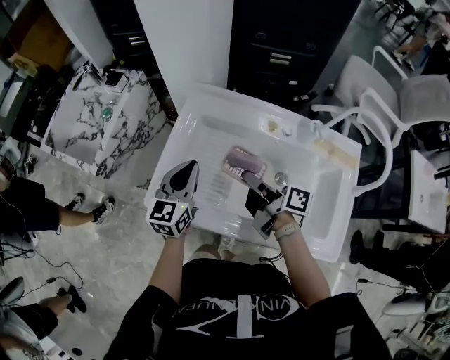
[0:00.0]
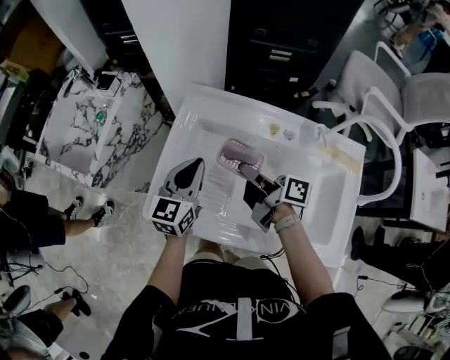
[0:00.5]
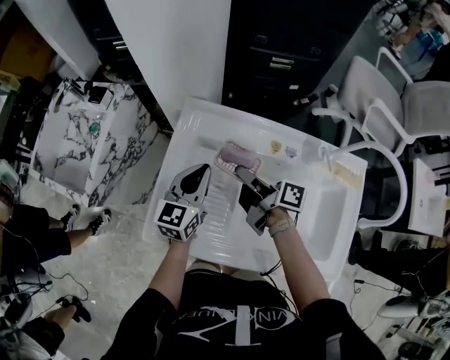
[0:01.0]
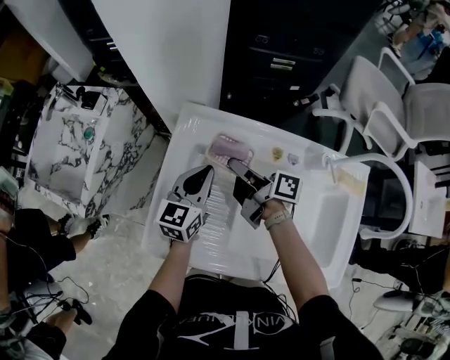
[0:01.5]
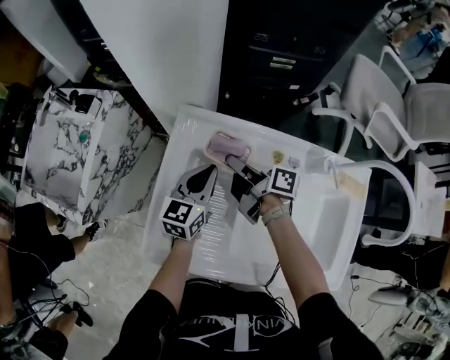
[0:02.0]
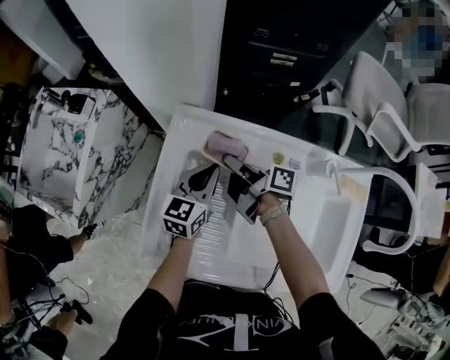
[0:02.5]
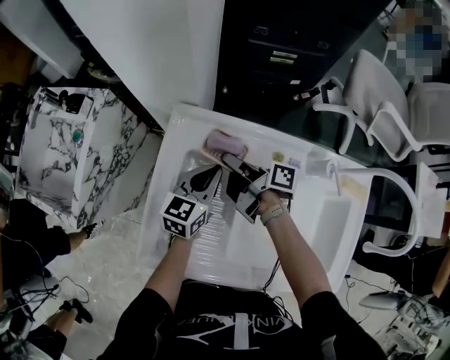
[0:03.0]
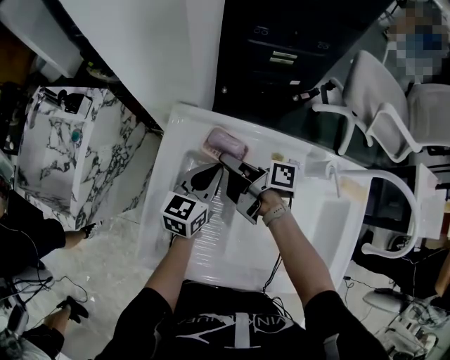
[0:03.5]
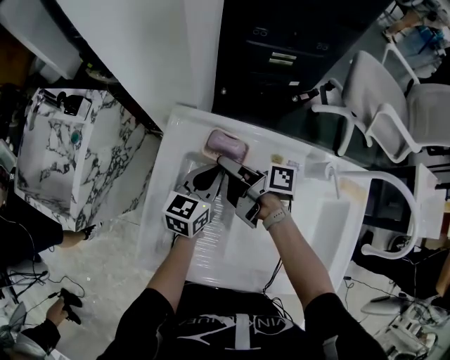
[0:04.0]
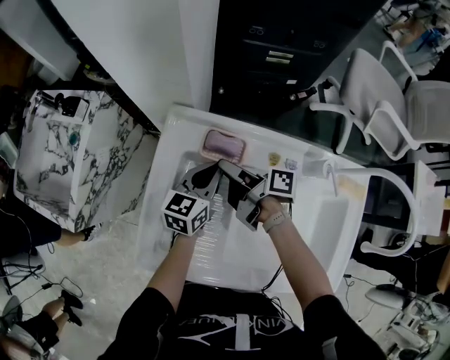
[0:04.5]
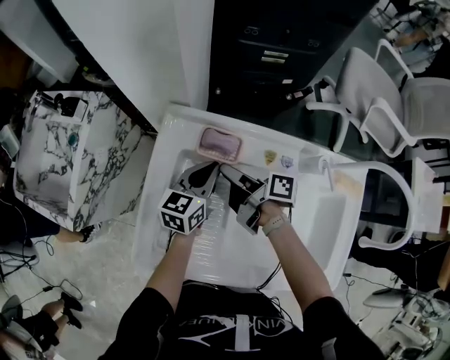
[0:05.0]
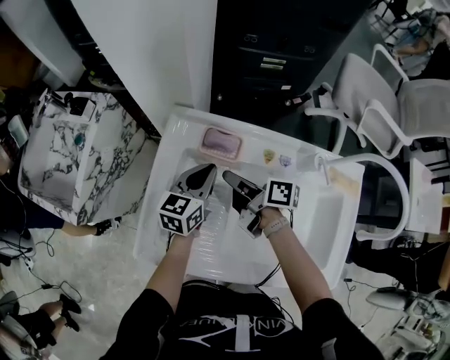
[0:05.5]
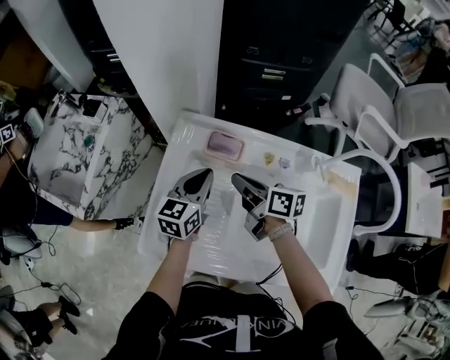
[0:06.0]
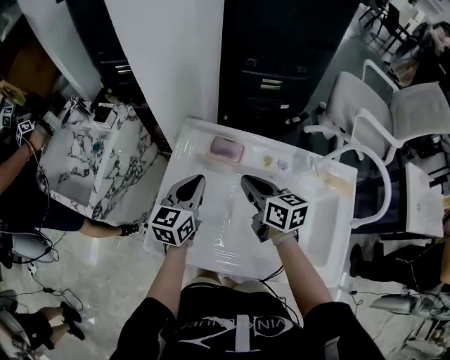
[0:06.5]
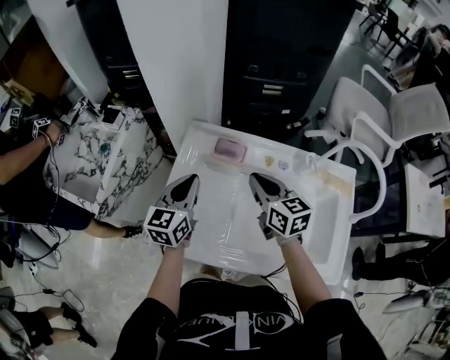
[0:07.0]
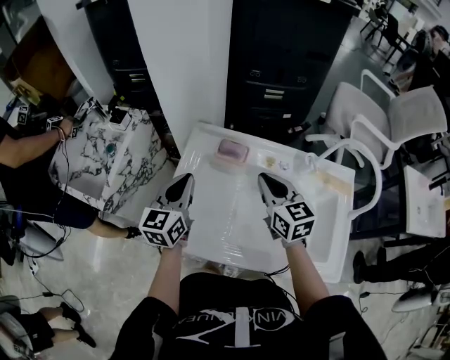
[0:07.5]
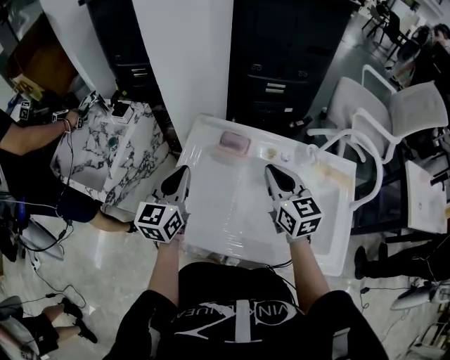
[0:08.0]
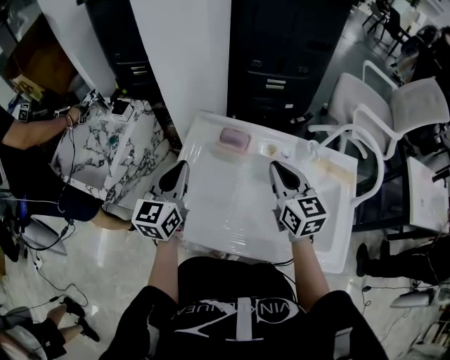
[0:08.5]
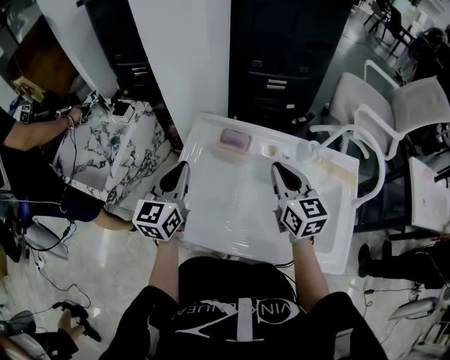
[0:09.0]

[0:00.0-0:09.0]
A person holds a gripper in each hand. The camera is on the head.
0:00.0 to 0:02.0: The right gripper travels forward by approximately 20 cm, while the left gripper goes some 15 cm forward, to the right and downward.
0:02.0 to 0:04.5: The right gripper opens up.
0:04.5 to 0:07.0: The right gripper travels upward and backward by some 15 cm, twists some 70 degrees counterclockwise, seen from behind, and closes up; the left gripper heads upward, to the left and backward, covering some 20 cm.
0:07.0 to 0:09.0: The two grippers go about 5 cm upward.

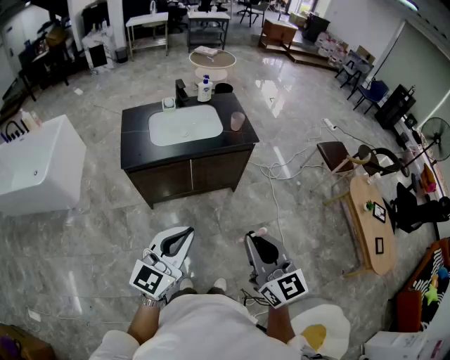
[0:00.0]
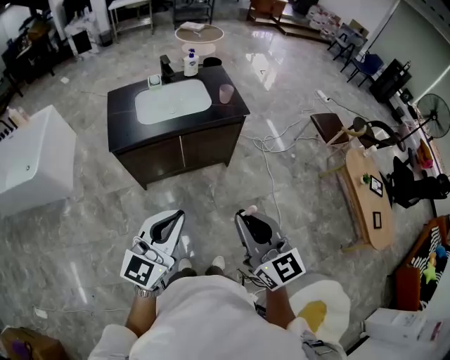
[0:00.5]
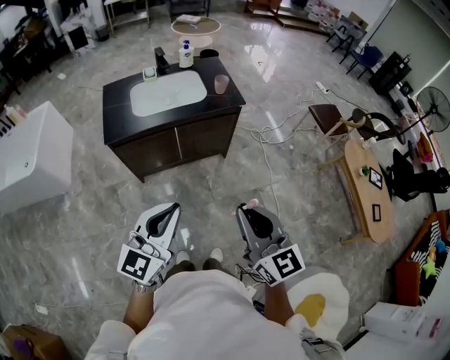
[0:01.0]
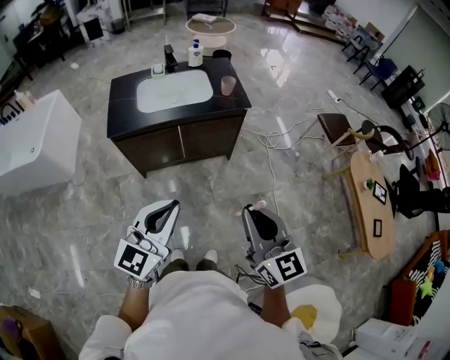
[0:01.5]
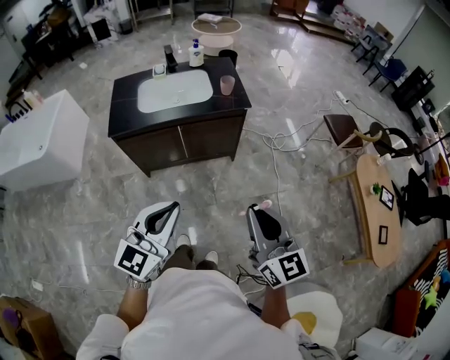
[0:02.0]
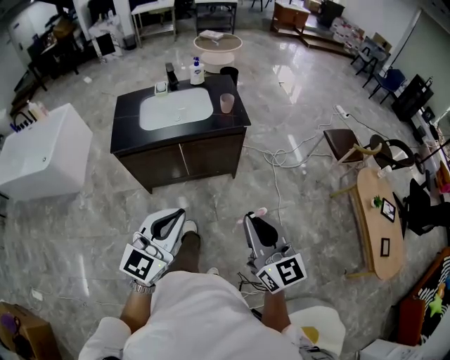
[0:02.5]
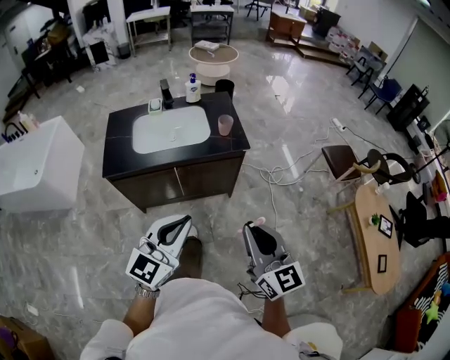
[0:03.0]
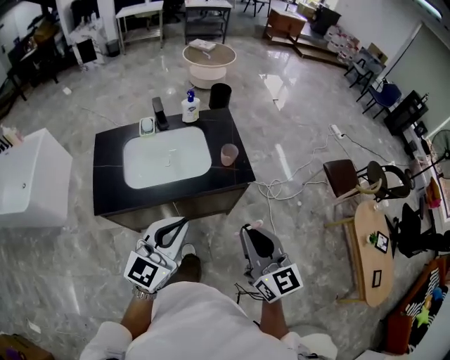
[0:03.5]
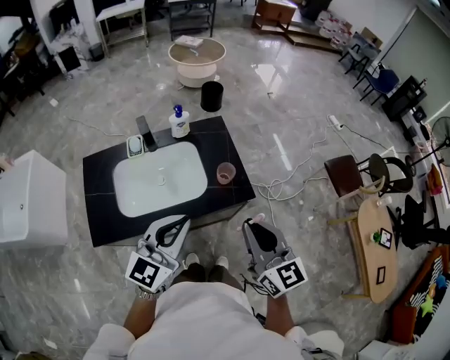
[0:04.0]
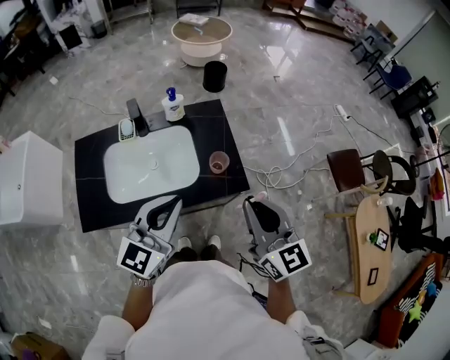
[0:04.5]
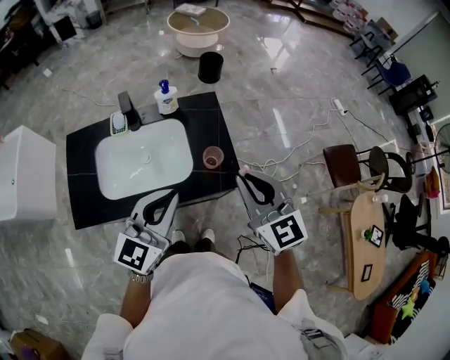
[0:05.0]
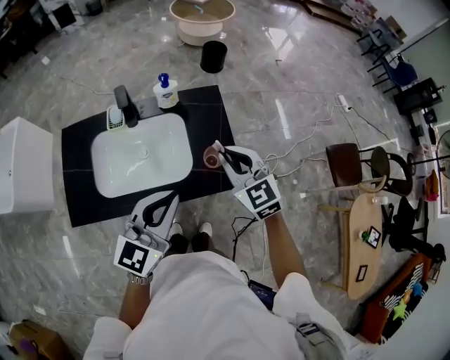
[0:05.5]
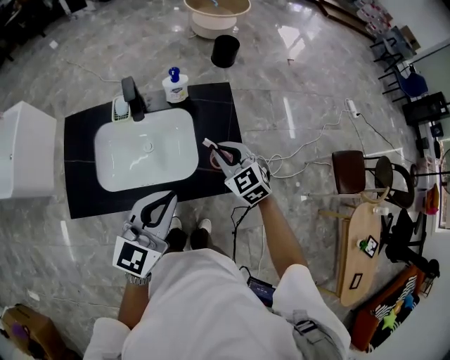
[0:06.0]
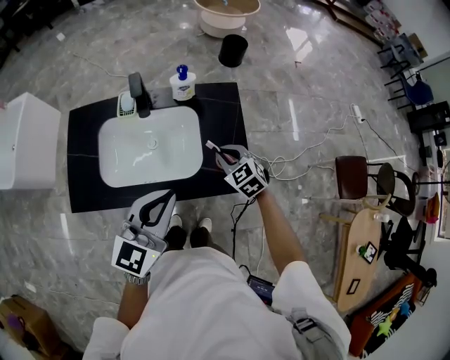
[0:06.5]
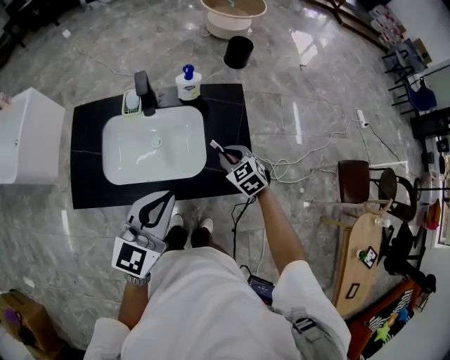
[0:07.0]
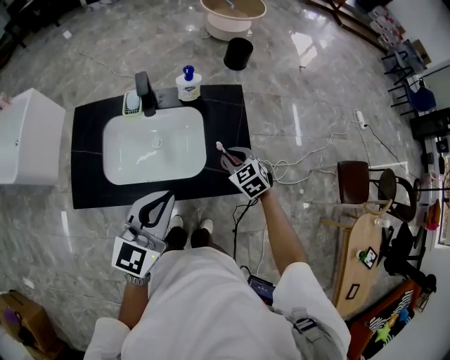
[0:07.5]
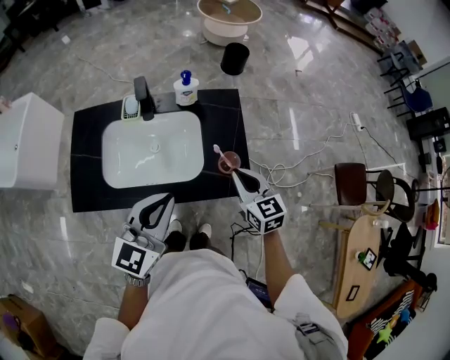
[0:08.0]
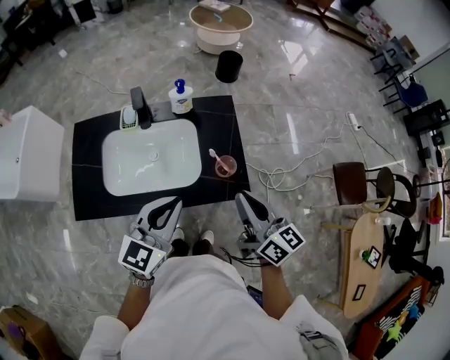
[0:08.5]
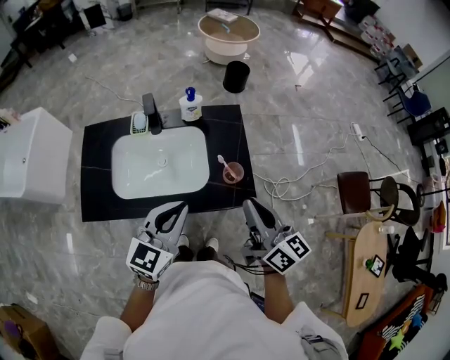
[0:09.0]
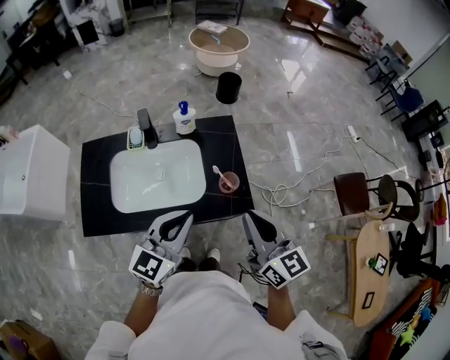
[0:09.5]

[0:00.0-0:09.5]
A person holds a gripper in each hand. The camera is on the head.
0:00.0 to 0:02.0: Both grippers travel together to the right, roughly 10 cm.
0:02.0 to 0:04.0: The two grippers travel together, forward, roughly 50 cm.
0:04.0 to 0:05.5: The left gripper is displaced forward by roughly 10 cm; the right gripper travels forward and downward by roughly 25 cm, and turns by approximately 30 degrees.
0:05.5 to 0:07.5: The right gripper is displaced downward by some 20 cm, and turns by roughly 20 degrees.
0:07.5 to 0:09.5: The right gripper heads upward and backward, covering approximately 30 cm, and angles its fingers upward, by approximately 40 degrees.

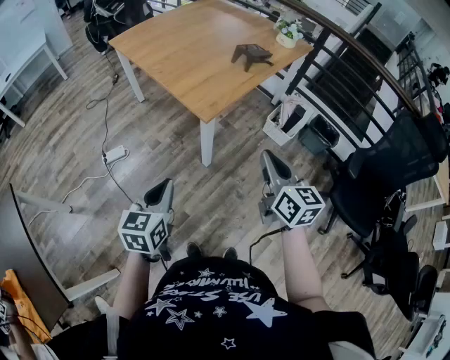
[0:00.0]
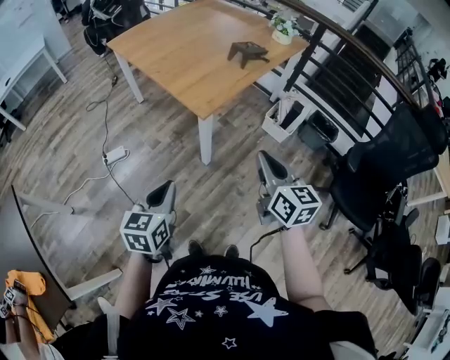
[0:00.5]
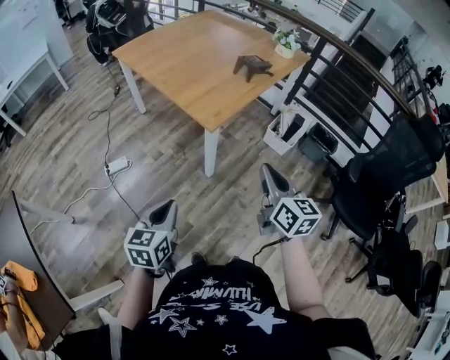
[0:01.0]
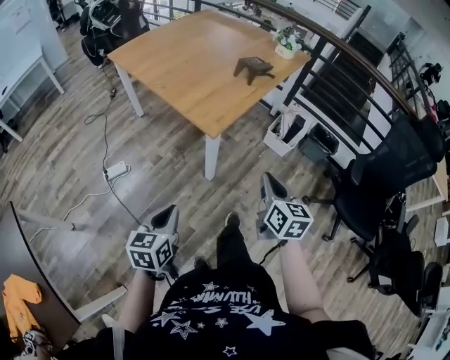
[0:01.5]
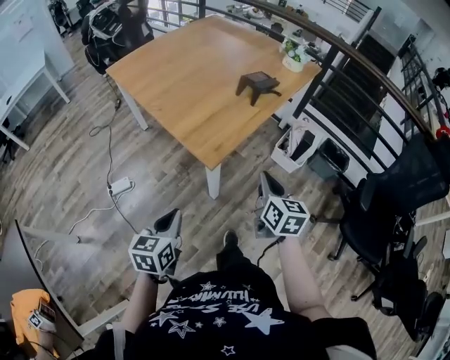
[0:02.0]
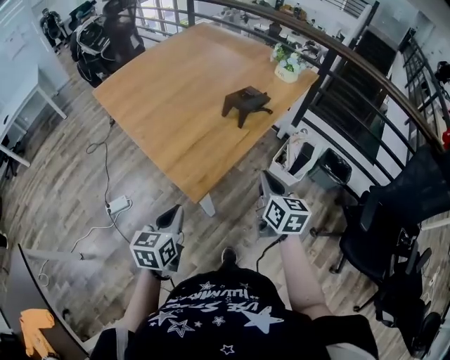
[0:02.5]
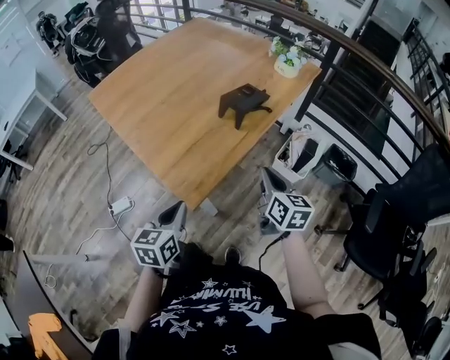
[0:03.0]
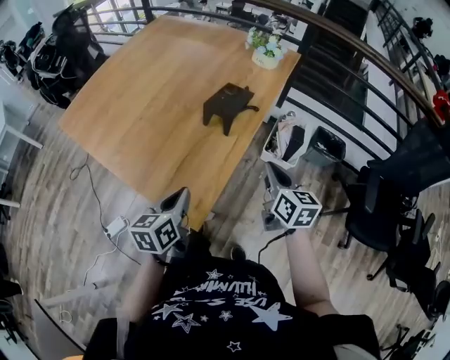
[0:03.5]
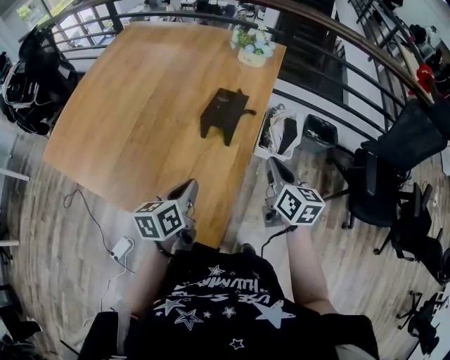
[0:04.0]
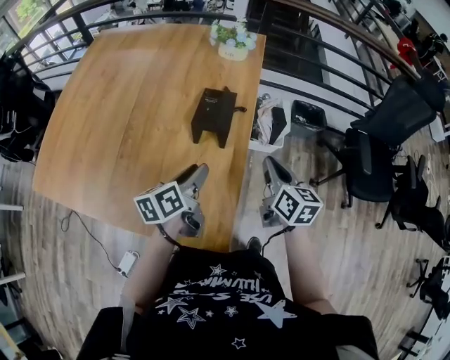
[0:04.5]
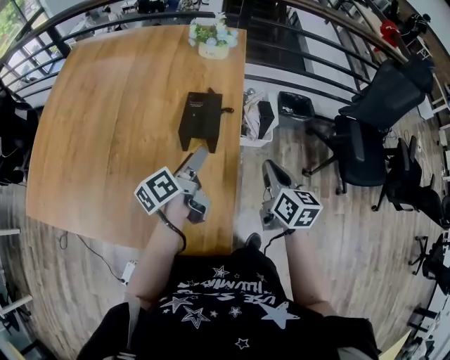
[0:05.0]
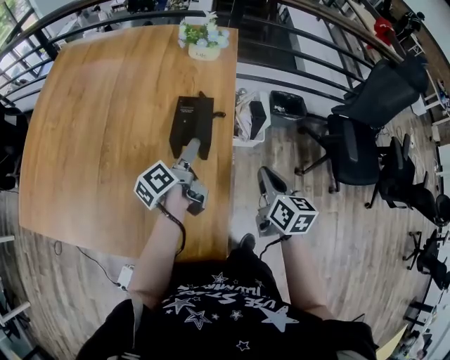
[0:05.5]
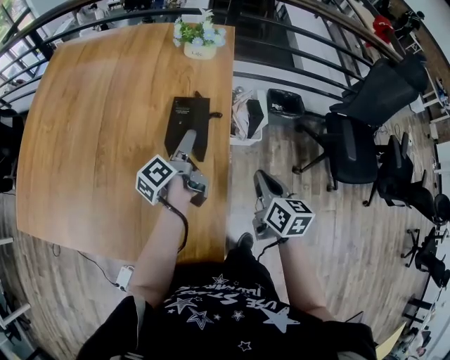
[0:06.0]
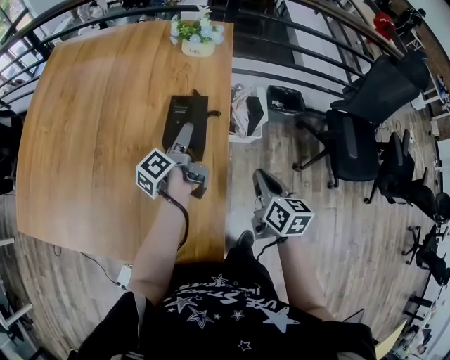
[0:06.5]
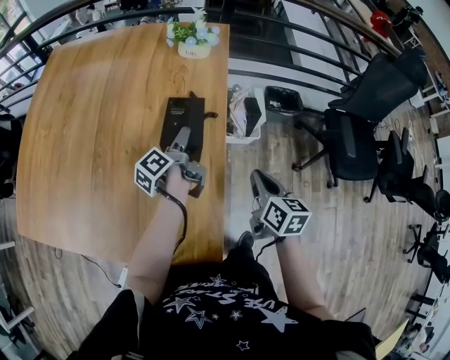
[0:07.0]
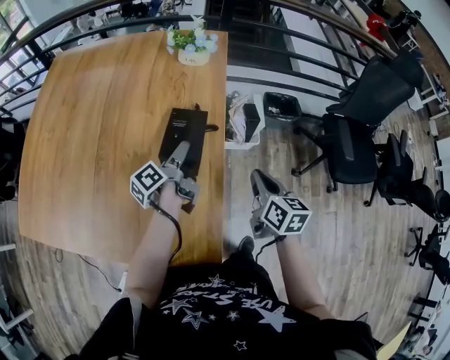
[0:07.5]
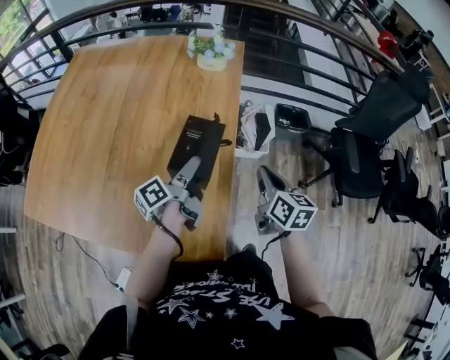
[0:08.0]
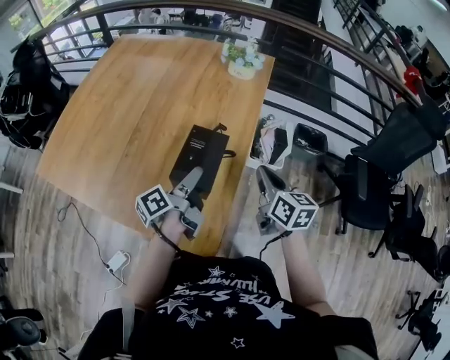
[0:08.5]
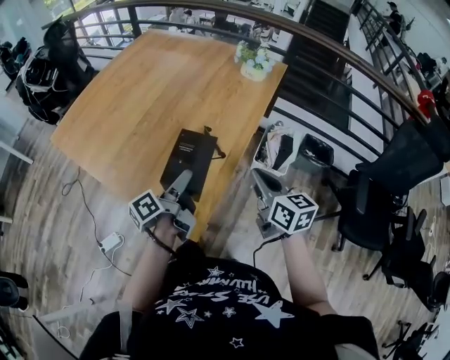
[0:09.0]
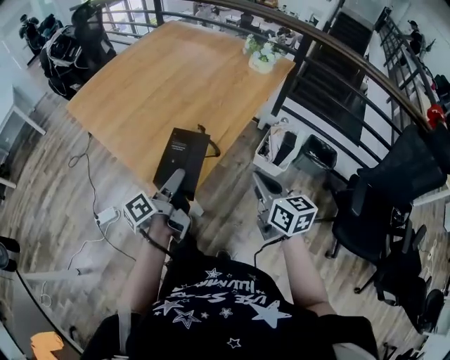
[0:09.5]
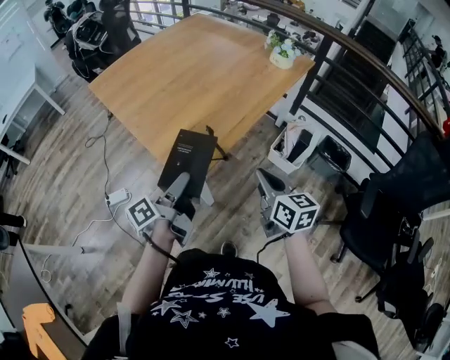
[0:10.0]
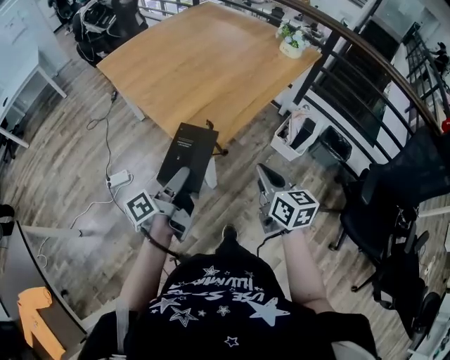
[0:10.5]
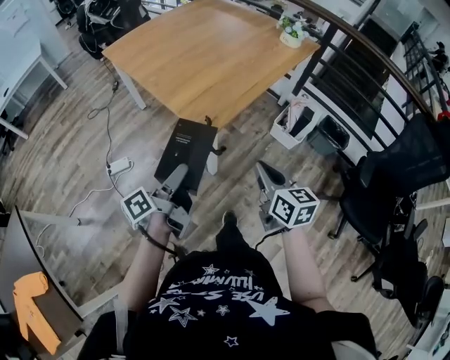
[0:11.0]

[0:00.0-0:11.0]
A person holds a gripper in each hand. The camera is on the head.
0:00.0 to 0:02.0: The left gripper shifts some 10 cm forward; the right gripper shifts roughly 15 cm forward and downward.
0:02.0 to 0:03.5: The two grippers go approximately 25 cm forward.
0:03.5 to 0:05.5: The right gripper moves about 5 cm, and rotates approximately 30 degrees; the left gripper ends up approximately 30 cm from where it was, rotates approximately 50 degrees, and opens.
0:05.5 to 0:07.5: The left gripper closes.
0:07.5 to 0:09.0: The left gripper changes place by approximately 25 cm; the right gripper goes roughly 10 cm upward, and changes its angle by roughly 40 degrees.
0:09.0 to 0:11.0: The grippers both shift backward by approximately 30 cm.
